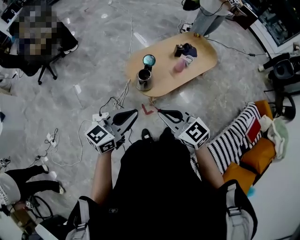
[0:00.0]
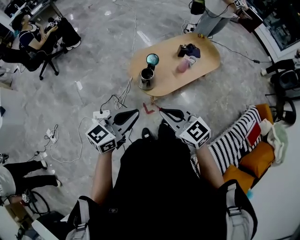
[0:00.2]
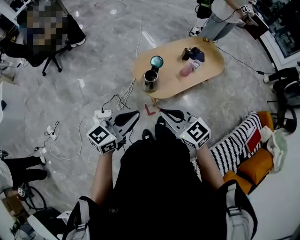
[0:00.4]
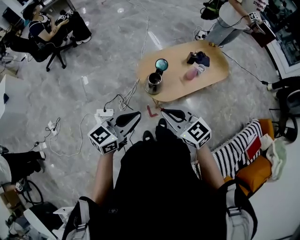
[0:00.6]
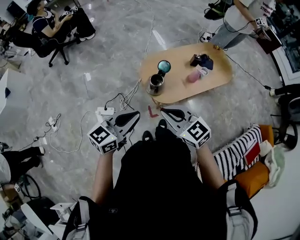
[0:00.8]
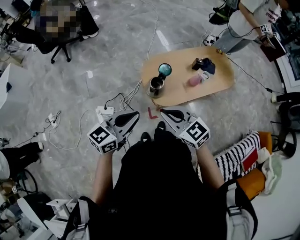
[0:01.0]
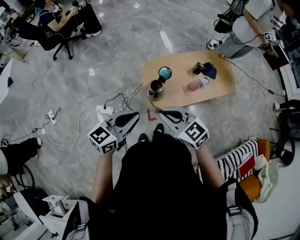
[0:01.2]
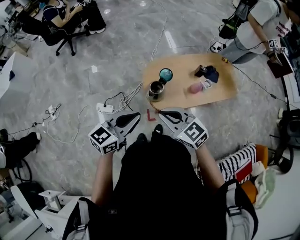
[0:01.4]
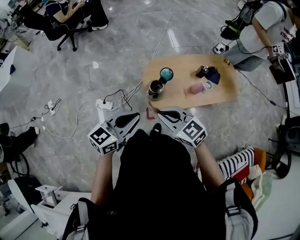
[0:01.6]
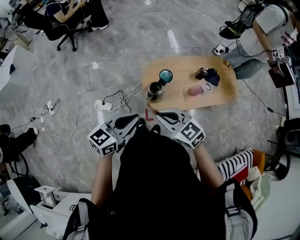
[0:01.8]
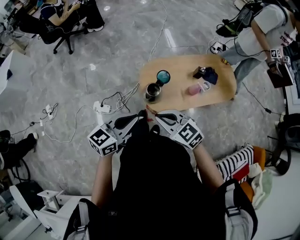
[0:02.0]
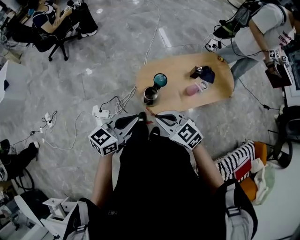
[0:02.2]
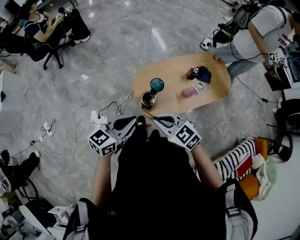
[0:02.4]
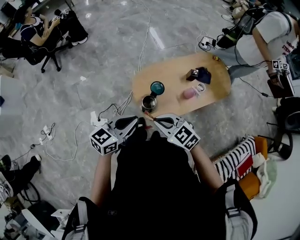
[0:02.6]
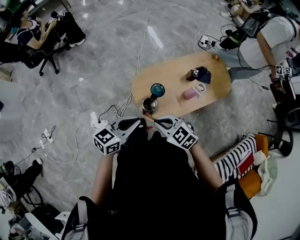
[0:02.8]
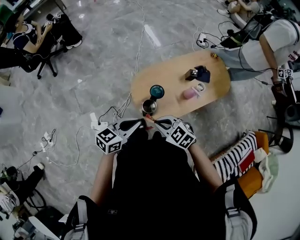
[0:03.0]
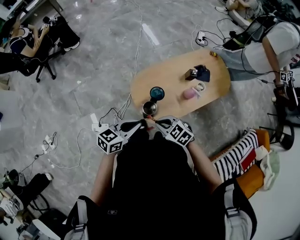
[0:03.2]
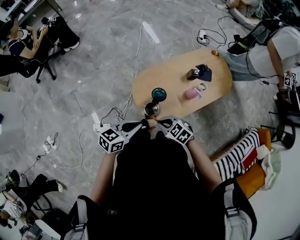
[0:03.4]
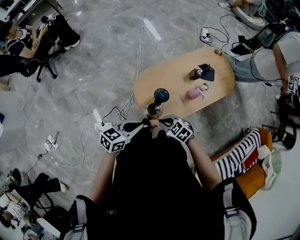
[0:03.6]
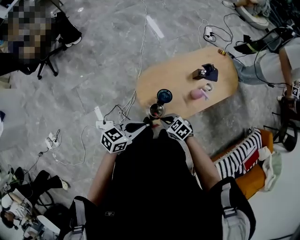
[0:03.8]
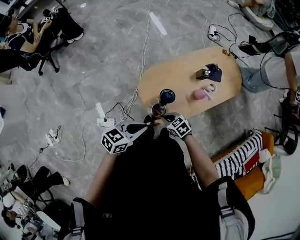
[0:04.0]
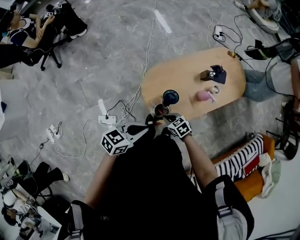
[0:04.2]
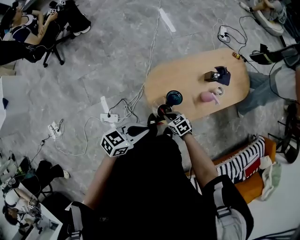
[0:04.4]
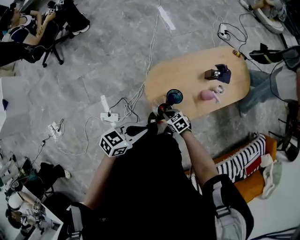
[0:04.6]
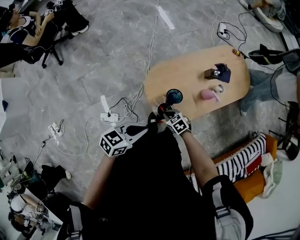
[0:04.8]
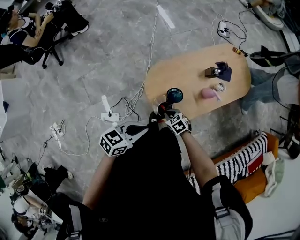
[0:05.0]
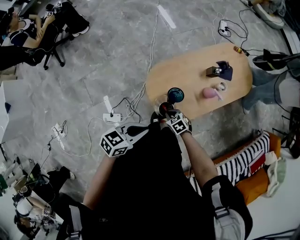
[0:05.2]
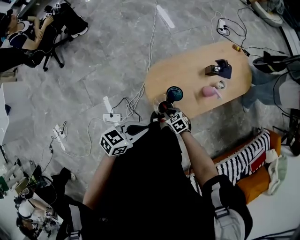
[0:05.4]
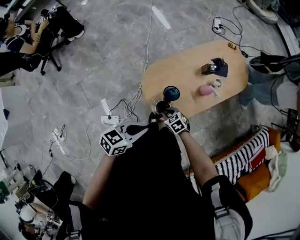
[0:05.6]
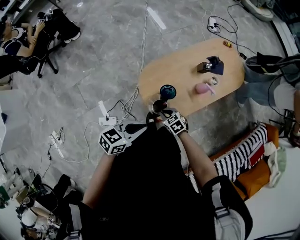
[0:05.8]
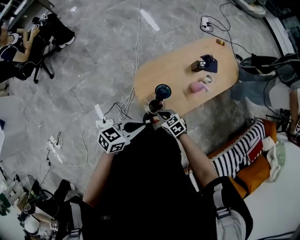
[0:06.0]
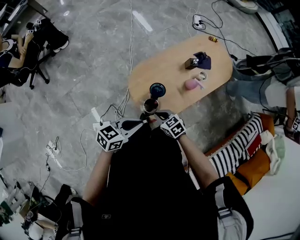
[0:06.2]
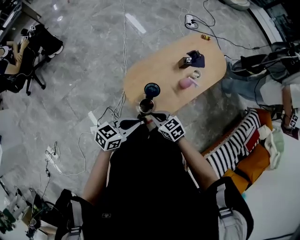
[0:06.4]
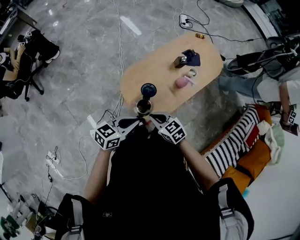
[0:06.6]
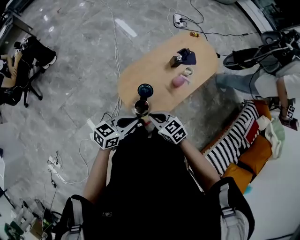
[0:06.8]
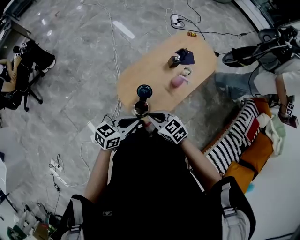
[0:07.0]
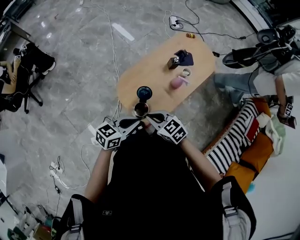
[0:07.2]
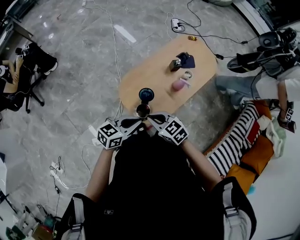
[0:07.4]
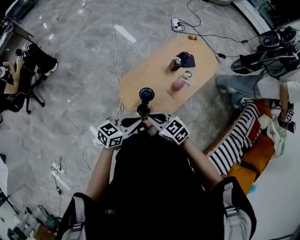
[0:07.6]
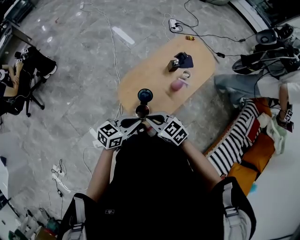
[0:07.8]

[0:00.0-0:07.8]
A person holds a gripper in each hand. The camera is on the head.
0:00.0 to 0:01.6: Both grippers move forward, about 10 cm. The right gripper swivels some 20 degrees; the left gripper turns by roughly 20 degrees.
0:01.6 to 0:03.2: The right gripper heads downward, covering some 15 cm, and swivels some 20 degrees, while the left gripper shifts by about 20 cm, and turns by some 20 degrees.
0:03.2 to 0:04.6: The right gripper goes some 20 cm downward, and turns by about 20 degrees. The left gripper moves roughly 5 cm.
0:04.6 to 0:06.2: The right gripper goes roughly 10 cm upward.
0:06.2 to 0:07.8: The right gripper moves upward, approximately 15 cm.

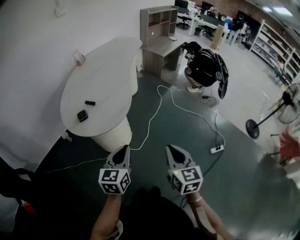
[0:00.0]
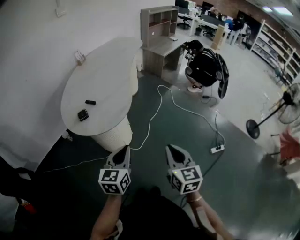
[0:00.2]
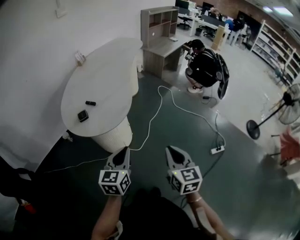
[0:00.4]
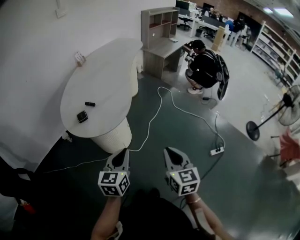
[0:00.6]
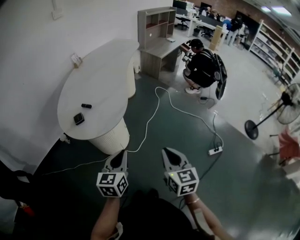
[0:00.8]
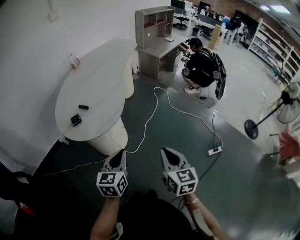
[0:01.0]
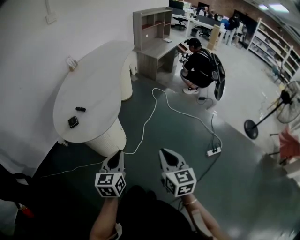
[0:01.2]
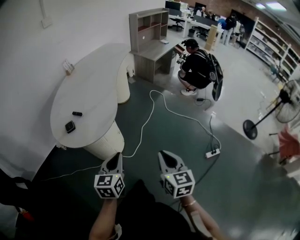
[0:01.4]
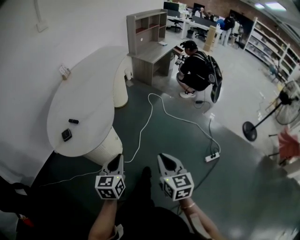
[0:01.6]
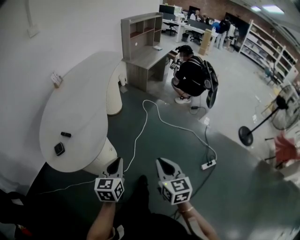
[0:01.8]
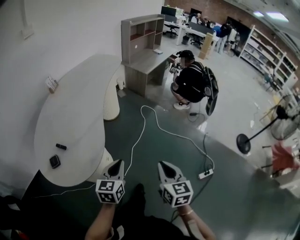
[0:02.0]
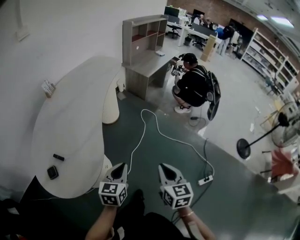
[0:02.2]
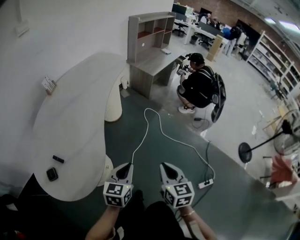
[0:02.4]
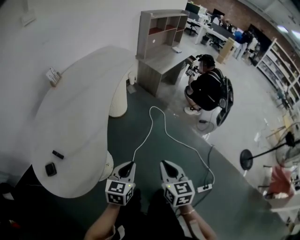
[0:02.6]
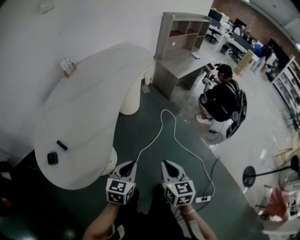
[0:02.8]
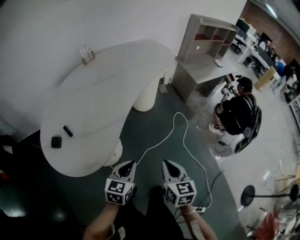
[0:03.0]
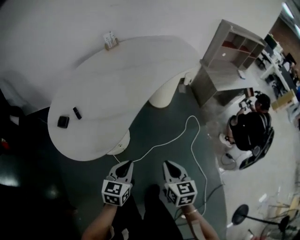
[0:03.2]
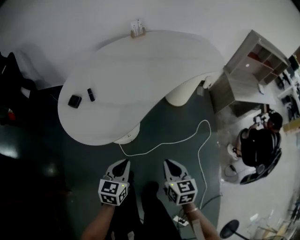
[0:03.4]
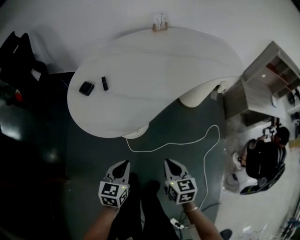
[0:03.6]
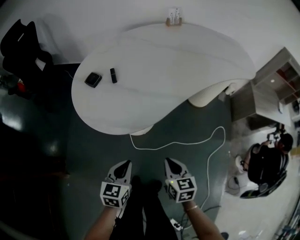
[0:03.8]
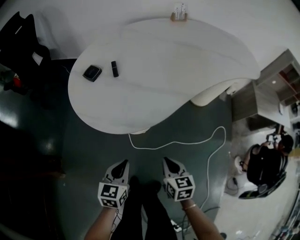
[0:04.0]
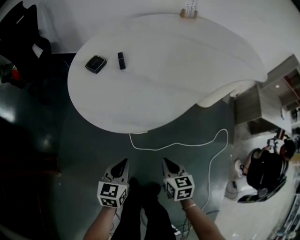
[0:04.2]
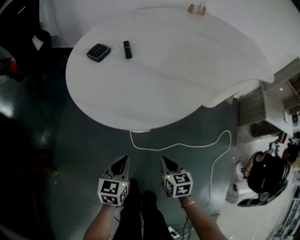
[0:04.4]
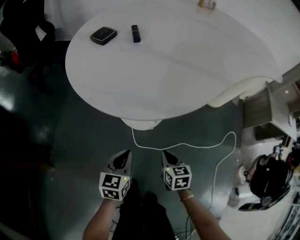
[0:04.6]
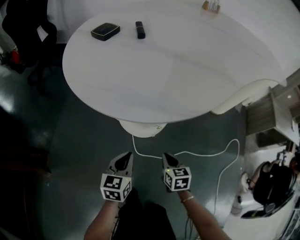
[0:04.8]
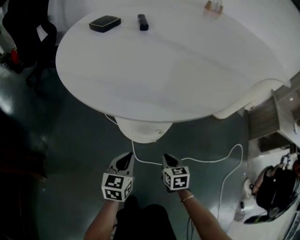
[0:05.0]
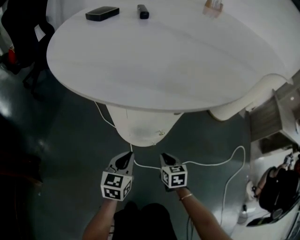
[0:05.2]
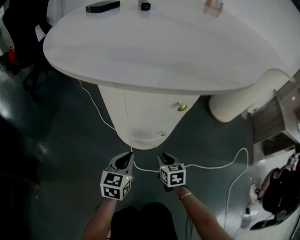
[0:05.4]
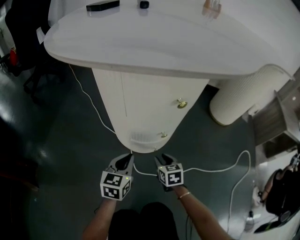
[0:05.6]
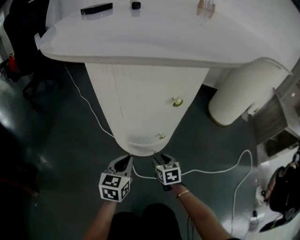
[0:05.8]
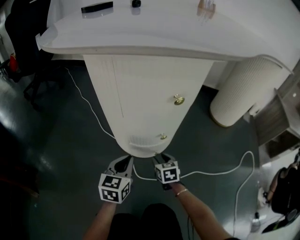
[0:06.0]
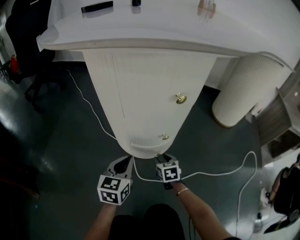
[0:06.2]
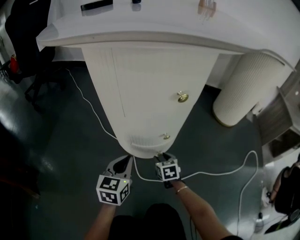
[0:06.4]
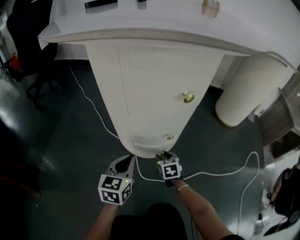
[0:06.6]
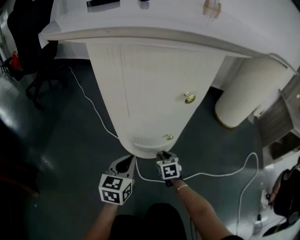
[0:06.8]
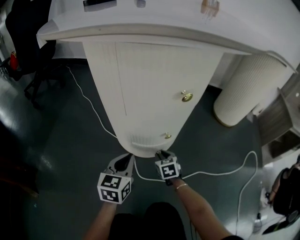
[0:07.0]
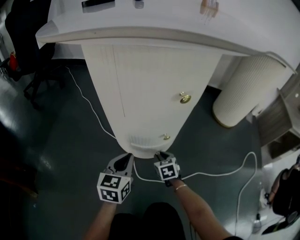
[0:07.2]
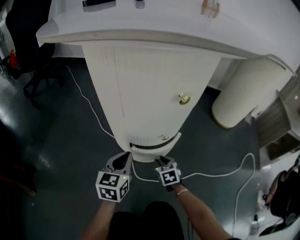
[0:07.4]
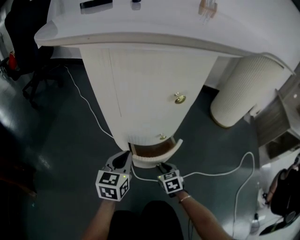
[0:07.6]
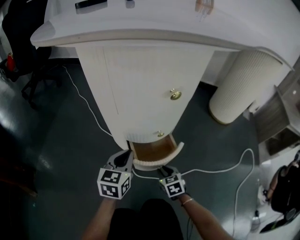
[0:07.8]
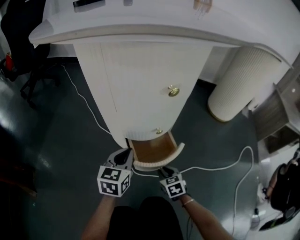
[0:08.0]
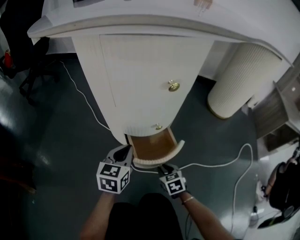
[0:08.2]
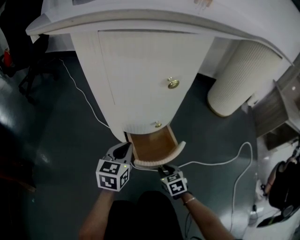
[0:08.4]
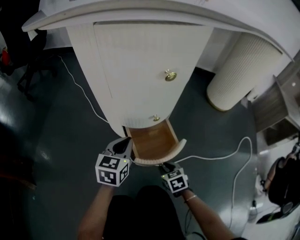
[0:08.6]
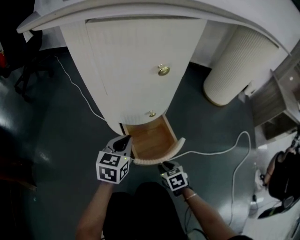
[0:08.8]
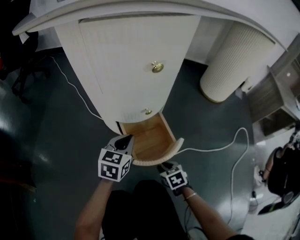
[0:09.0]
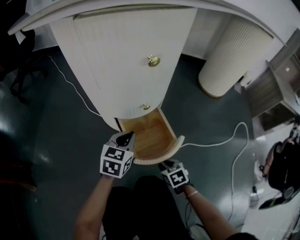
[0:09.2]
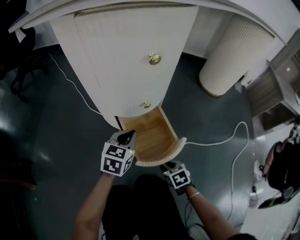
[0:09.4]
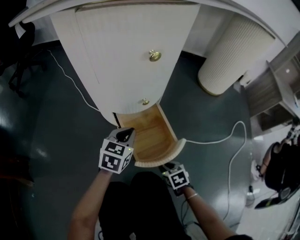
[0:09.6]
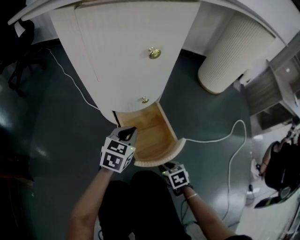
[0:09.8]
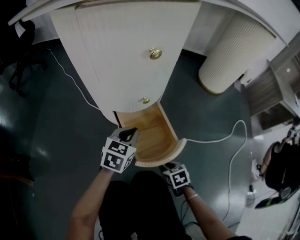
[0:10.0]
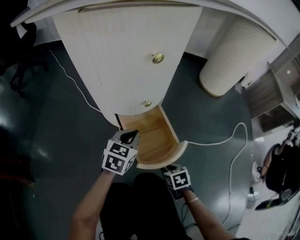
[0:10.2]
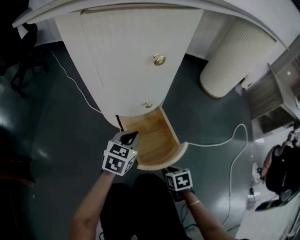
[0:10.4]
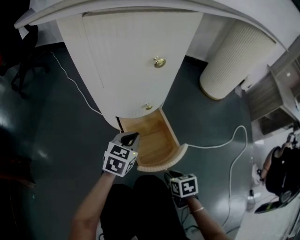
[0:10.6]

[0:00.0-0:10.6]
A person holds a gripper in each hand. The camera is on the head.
0:00.0 to 0:01.6: The two grippers go roughly 10 cm forward and to the right.
0:01.6 to 0:03.0: Both grippers move forward, approximately 30 cm. The right gripper changes its angle by about 30 degrees.
0:03.0 to 0:04.6: Both grippers move downward, approximately 35 cm. The right gripper changes its angle by some 50 degrees; the left gripper swivels about 50 degrees.
0:04.6 to 0:06.0: Both grippers move downward and forward, approximately 25 cm. The right gripper opens up.
0:06.0 to 0:07.6: The right gripper changes place by some 5 cm.
0:07.6 to 0:09.0: The left gripper is displaced to the right by some 5 cm. Meanwhile the right gripper shifts roughly 10 cm backward.
0:09.0 to 0:10.6: The right gripper moves backward, about 5 cm.

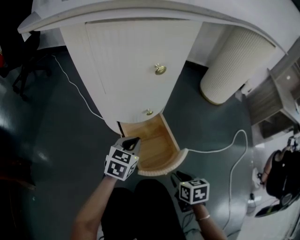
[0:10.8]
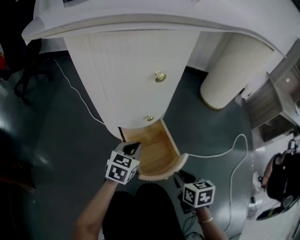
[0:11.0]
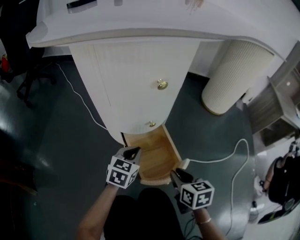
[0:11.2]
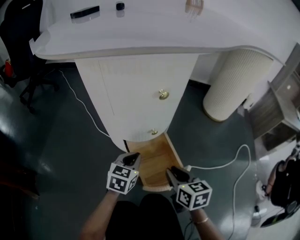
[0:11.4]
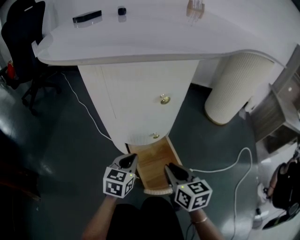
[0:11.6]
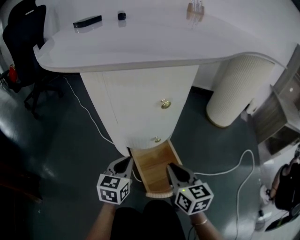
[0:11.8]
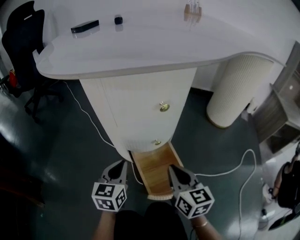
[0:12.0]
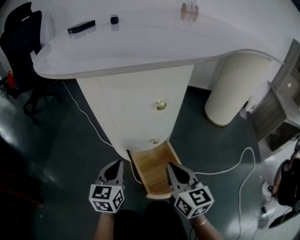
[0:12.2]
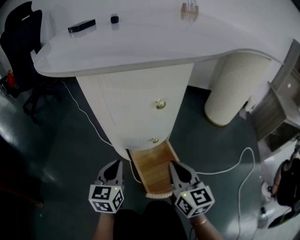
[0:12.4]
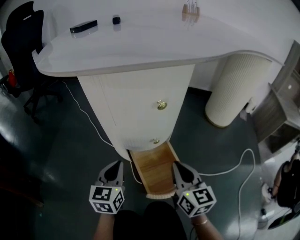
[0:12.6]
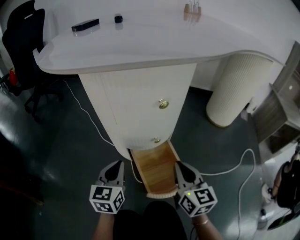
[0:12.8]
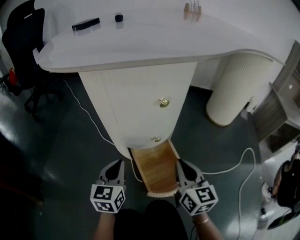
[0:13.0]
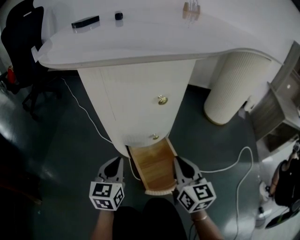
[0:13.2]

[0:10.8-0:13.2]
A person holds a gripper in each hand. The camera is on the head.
0:10.8 to 0:12.0: The right gripper moves upward, forward and to the left, roughly 25 cm, angles its fingers upward, by some 40 degrees, and closes up. Meanwhile the left gripper travels to the left and upward by roughly 15 cm, and rotates some 20 degrees.
0:12.0 to 0:13.2: The grippers make only small movements.

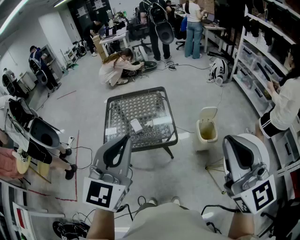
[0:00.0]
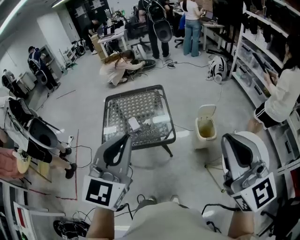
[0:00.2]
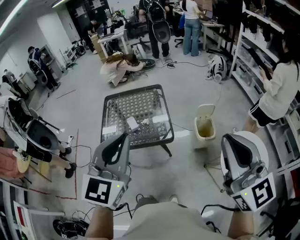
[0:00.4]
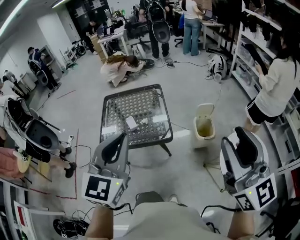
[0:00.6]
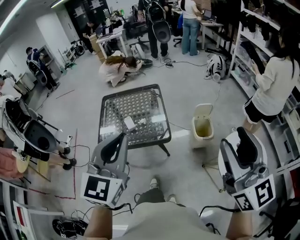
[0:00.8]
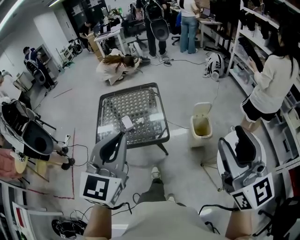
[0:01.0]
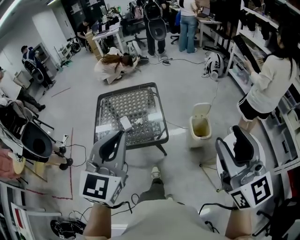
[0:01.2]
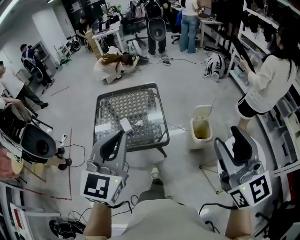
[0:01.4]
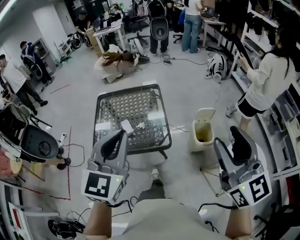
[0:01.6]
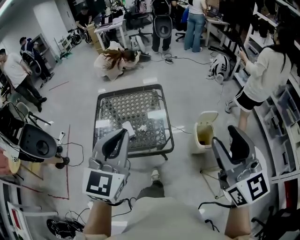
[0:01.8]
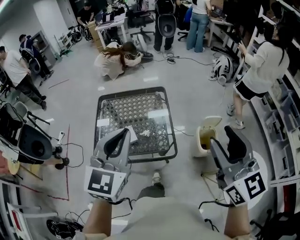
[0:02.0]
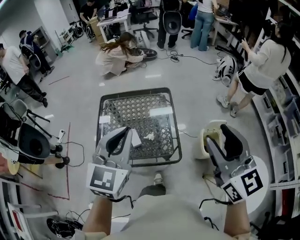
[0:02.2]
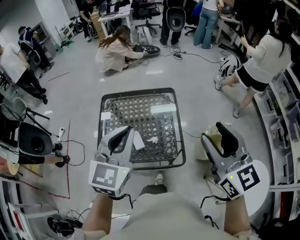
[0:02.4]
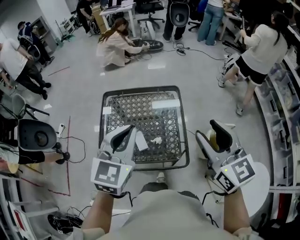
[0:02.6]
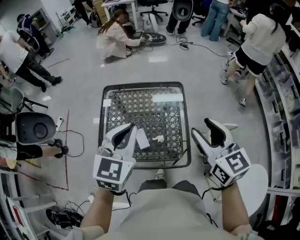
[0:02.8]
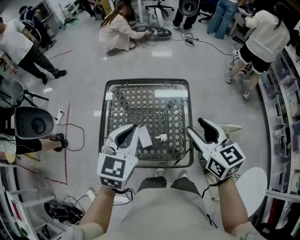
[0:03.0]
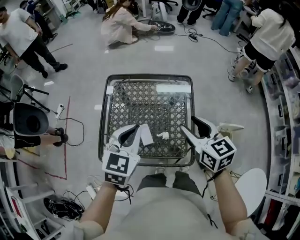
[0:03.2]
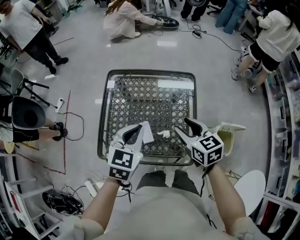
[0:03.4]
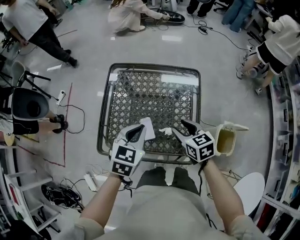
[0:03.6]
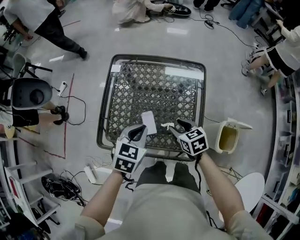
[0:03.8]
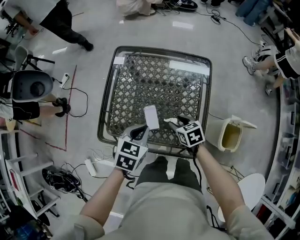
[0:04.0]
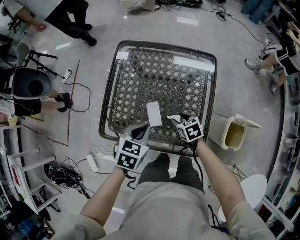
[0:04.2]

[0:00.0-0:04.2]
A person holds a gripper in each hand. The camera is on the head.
0:00.0 to 0:01.4: The right gripper moves to the right and forward, approximately 10 cm, and opens up, while the left gripper goes roughly 5 cm forward.
0:01.4 to 0:02.8: The two grippers go some 40 cm forward, to the left and downward. The right gripper swivels roughly 30 degrees.
0:02.8 to 0:04.2: The right gripper is displaced downward by about 40 cm, and tips its fingers downward by approximately 40 degrees; the left gripper goes approximately 30 cm downward, and tips its fingers downward by roughly 30 degrees.
